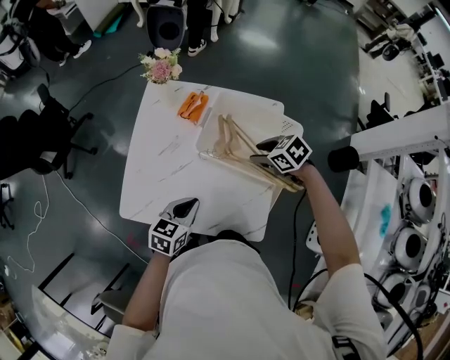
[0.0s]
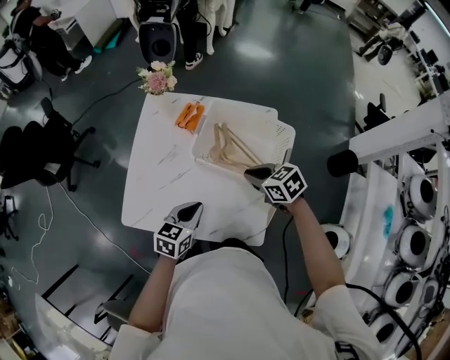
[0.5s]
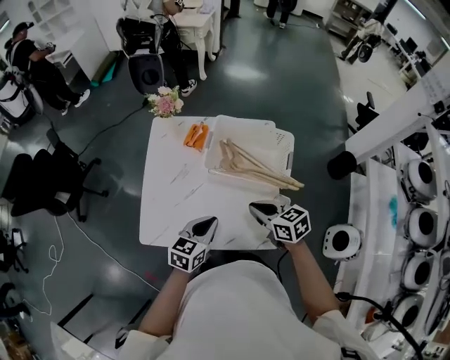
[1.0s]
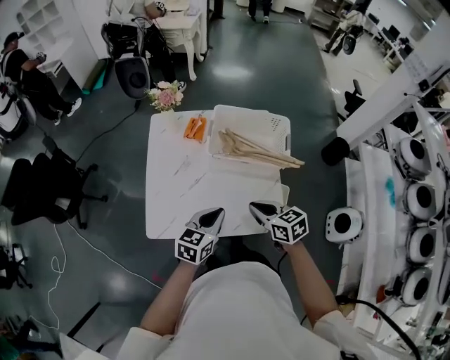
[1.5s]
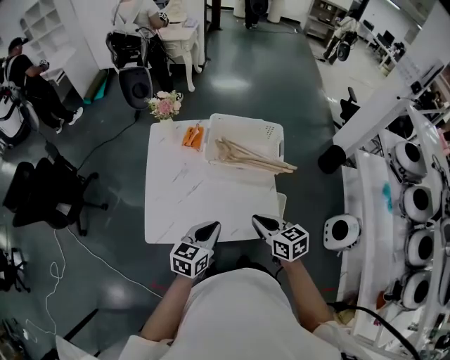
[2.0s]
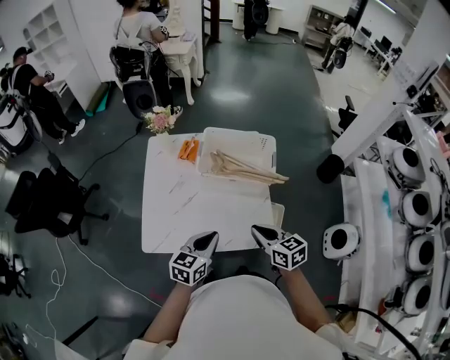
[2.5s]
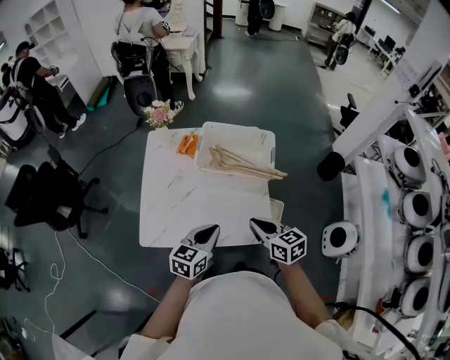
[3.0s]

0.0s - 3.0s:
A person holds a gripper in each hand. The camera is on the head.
0.0s - 1.5s: The left gripper heads backward and upward, covering about 10 cm; the right gripper heads backward and to the left, covering roughly 25 cm, swivels roughly 40 degrees, and closes its fingers.
1.5s - 3.0s: The left gripper changes place by about 5 cm, while the right gripper goes roughly 5 cm to the right.

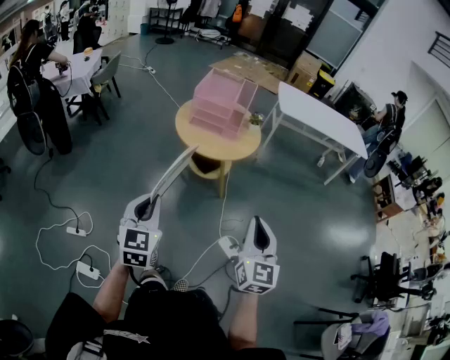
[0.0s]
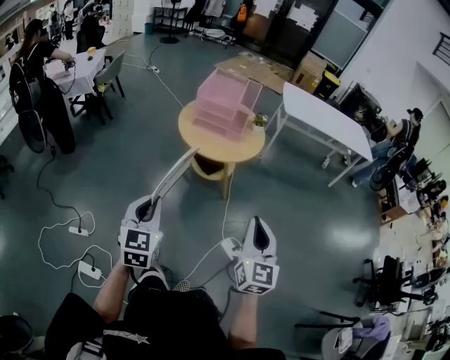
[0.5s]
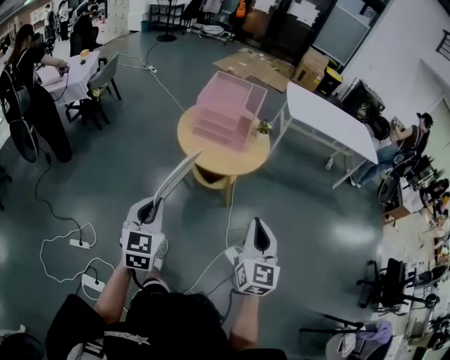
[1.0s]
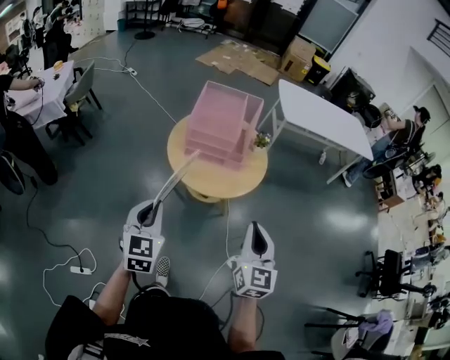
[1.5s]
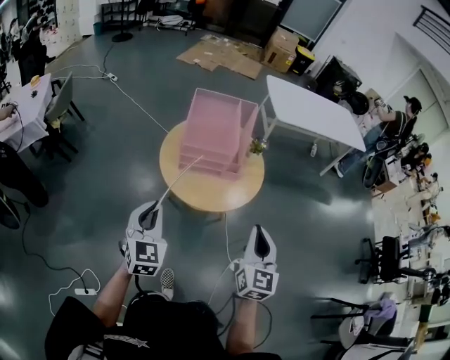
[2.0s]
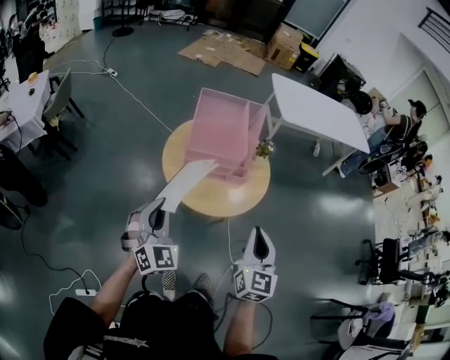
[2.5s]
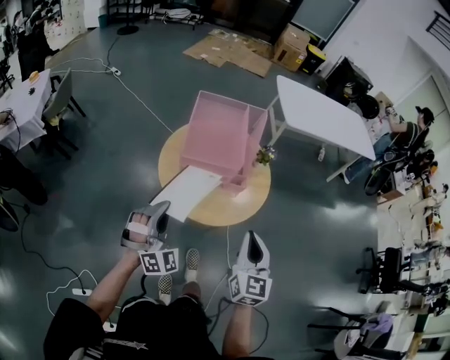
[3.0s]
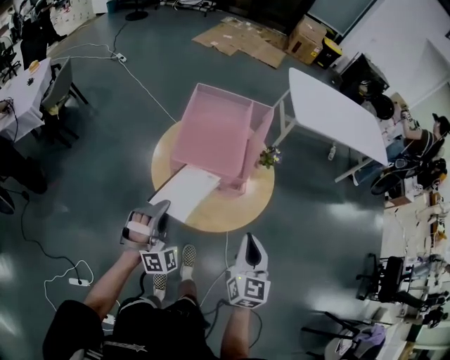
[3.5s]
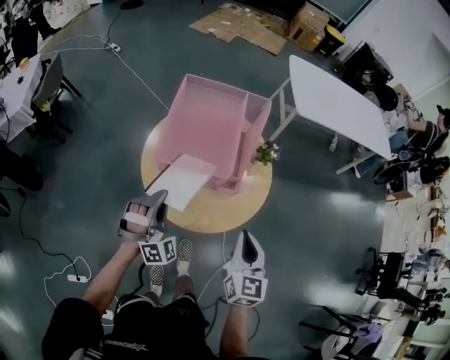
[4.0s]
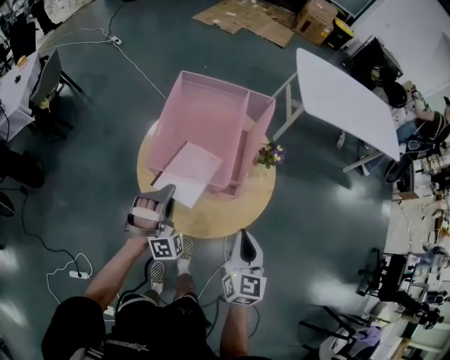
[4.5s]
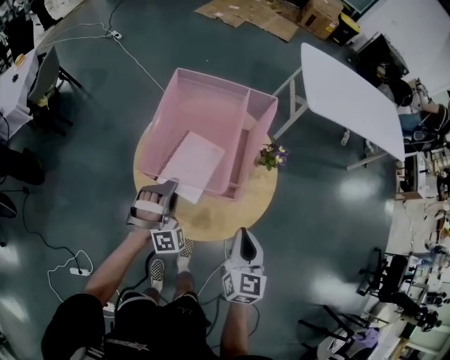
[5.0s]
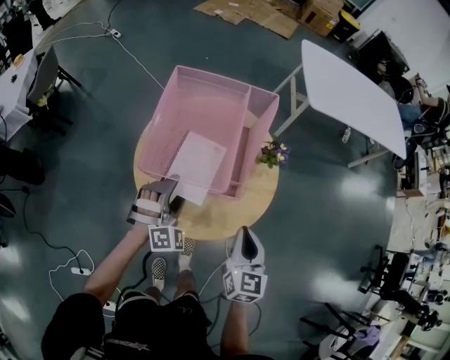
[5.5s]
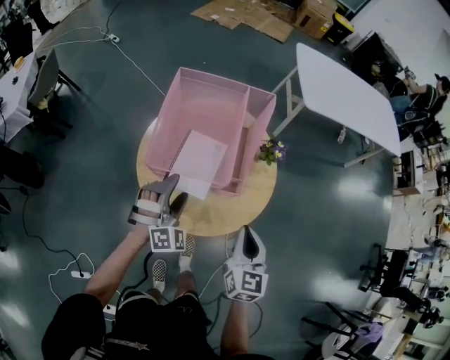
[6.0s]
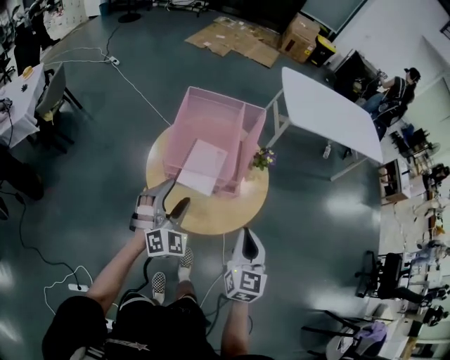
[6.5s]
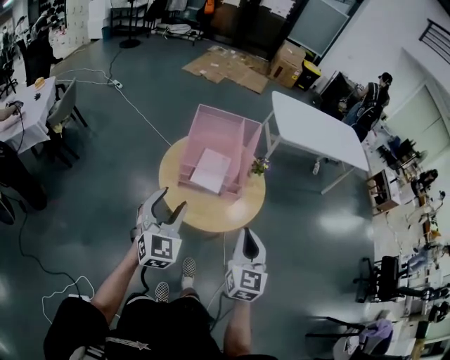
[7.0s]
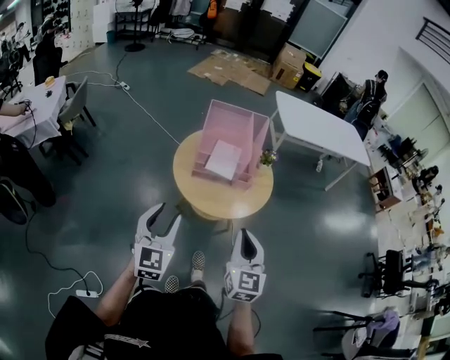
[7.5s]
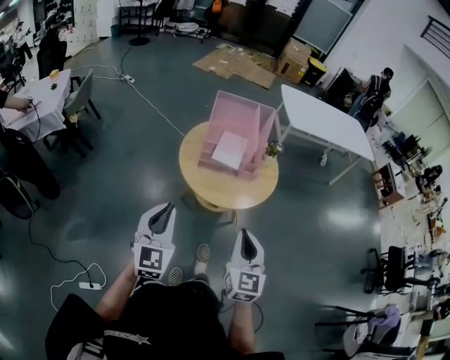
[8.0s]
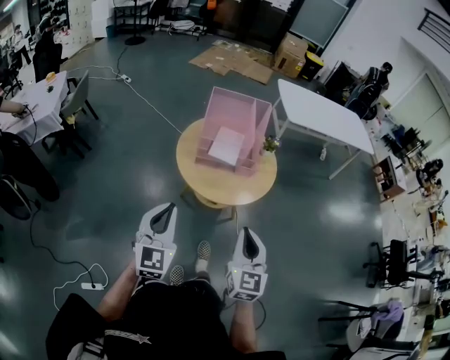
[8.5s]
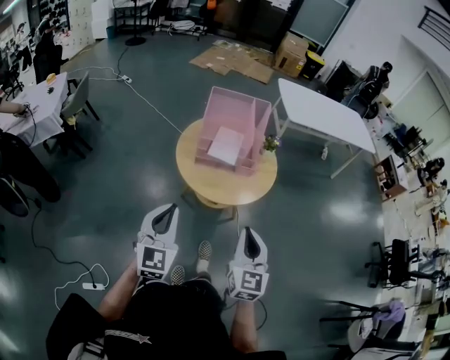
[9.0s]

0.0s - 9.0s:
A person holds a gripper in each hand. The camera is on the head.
0.0s - 2.0s: The two grippers go roughly 35 cm forward.
2.0s - 4.5s: The left gripper goes some 30 cm forward, downward and to the right, and rolls clockwise, seen from behind, by approximately 60 degrees, while the right gripper travels forward and downward by approximately 25 cm.
4.5s - 7.0s: The left gripper travels upward and backward by about 20 cm, rolls counterclockwise, seen from behind, by approximately 50 degrees, and opens its fingers. Meanwhile the right gripper goes approximately 20 cm upward, backward and to the left.
7.0s - 9.0s: The two grippers go about 15 cm backward. The left gripper closes.

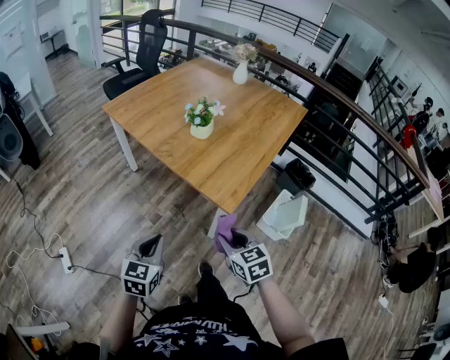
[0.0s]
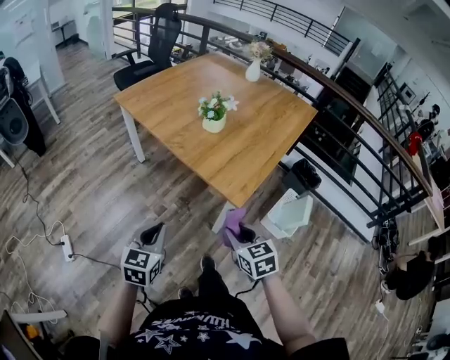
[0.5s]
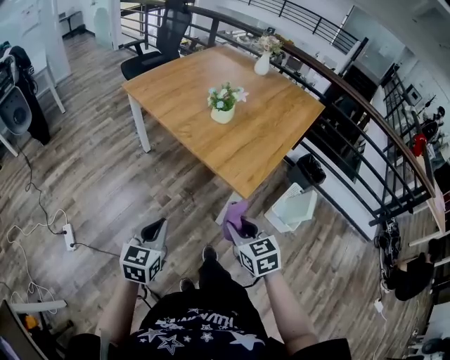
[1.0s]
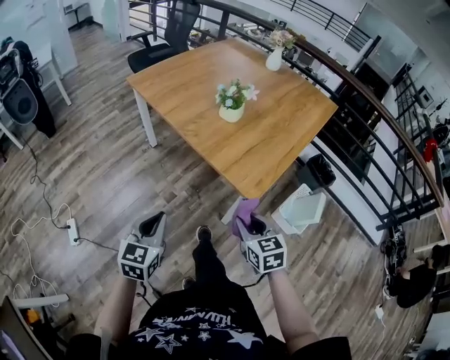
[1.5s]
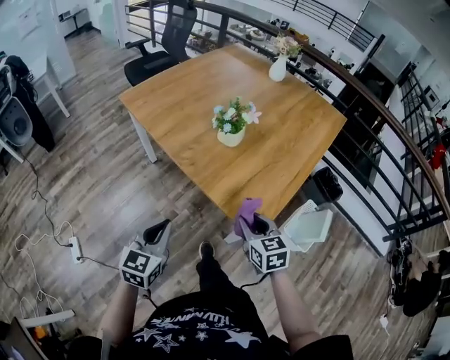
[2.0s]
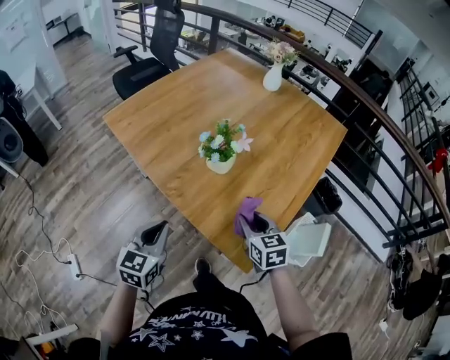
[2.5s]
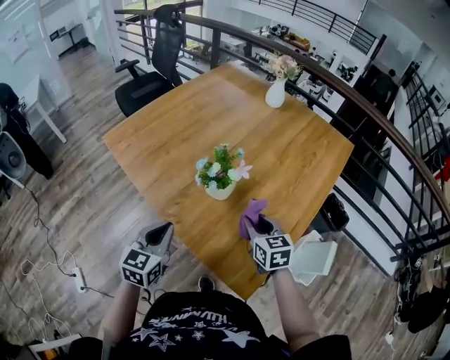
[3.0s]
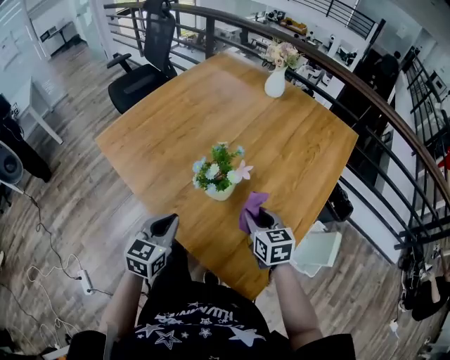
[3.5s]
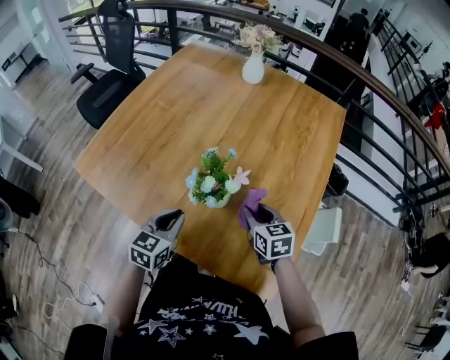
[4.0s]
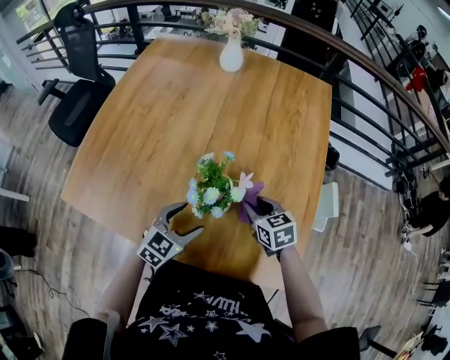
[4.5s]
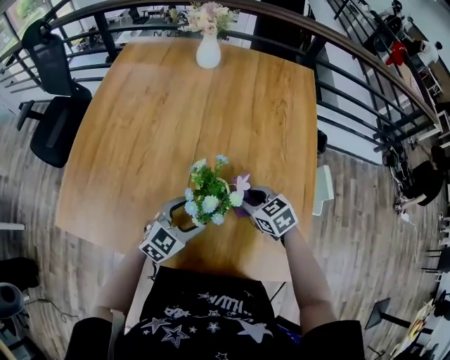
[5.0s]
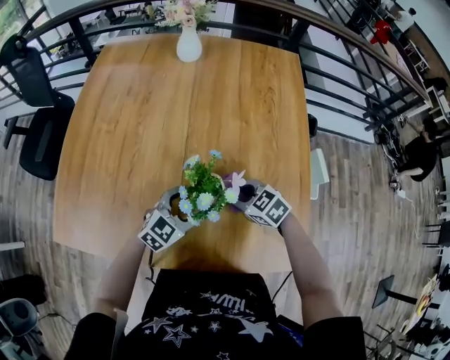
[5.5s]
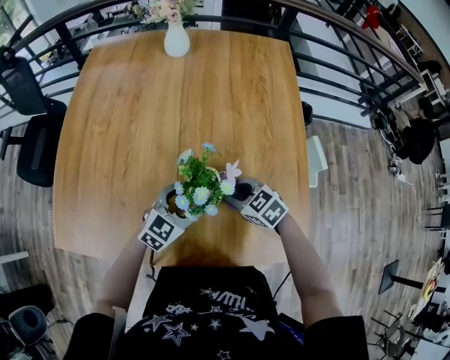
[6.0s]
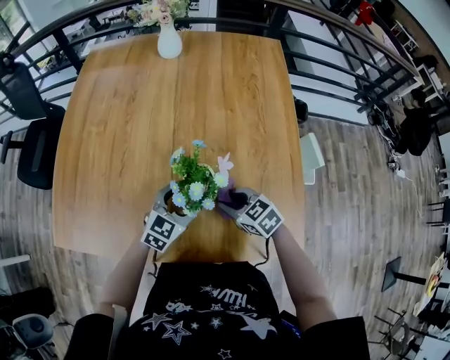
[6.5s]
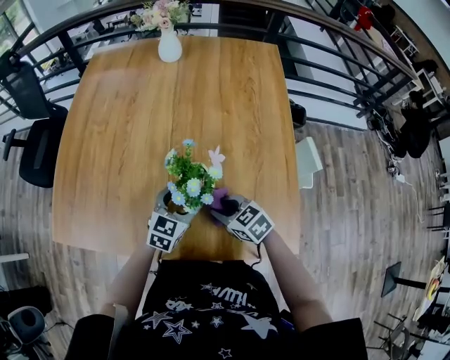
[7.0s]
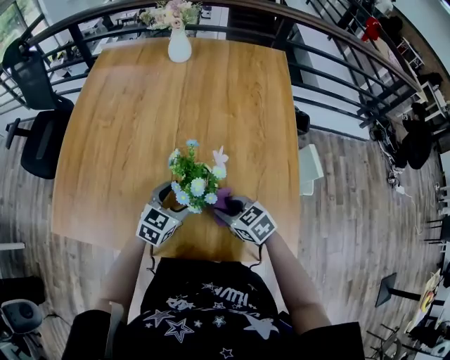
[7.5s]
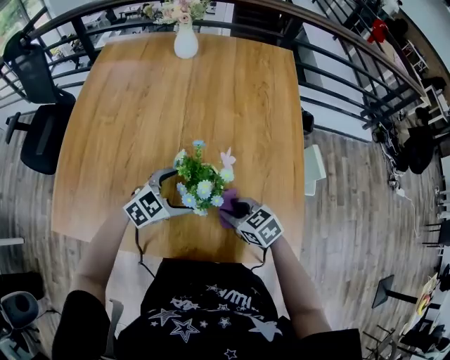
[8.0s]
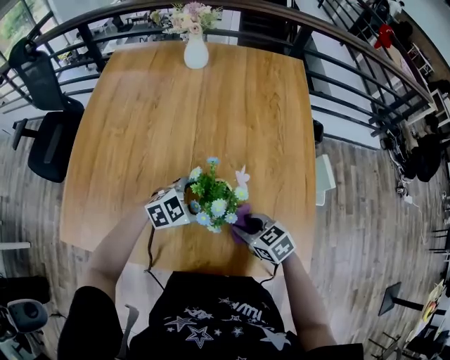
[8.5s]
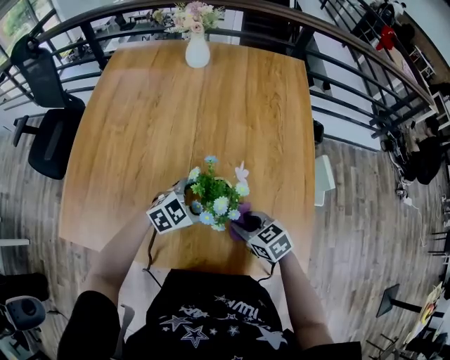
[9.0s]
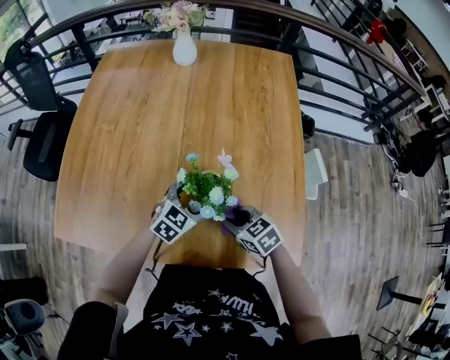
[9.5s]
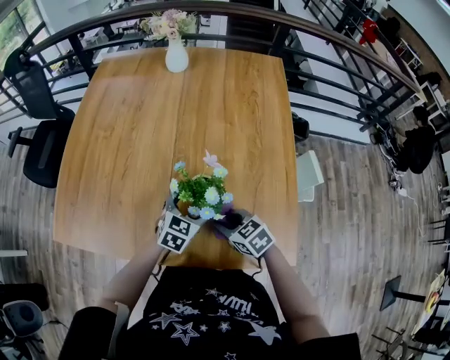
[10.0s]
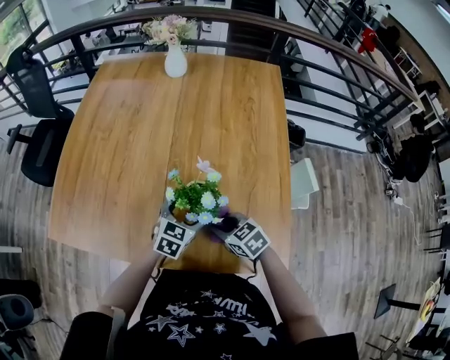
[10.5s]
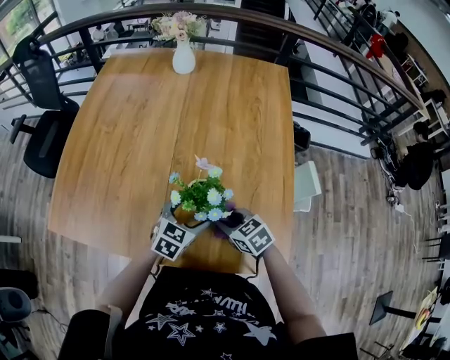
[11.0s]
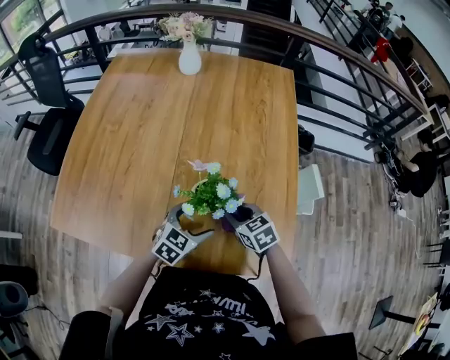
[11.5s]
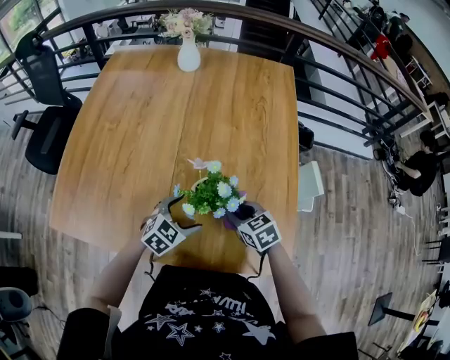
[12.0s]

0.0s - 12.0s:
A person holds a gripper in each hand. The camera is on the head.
0.0s - 2.0s: The two grippers go some 15 cm forward.
2.0s - 4.0s: Both grippers move forward, about 35 cm. The left gripper changes its angle by roughly 20 degrees.
4.0s - 6.0s: The left gripper is displaced forward and downward by about 15 cm, changes its angle by approximately 50 degrees, and opens up. Meanwhile the right gripper shifts approximately 10 cm downward and to the left.
6.0s - 8.0s: The right gripper heads backward, covering about 5 cm.
8.0s - 10.0s: The left gripper moves some 5 cm, and rotates some 30 degrees.
10.0s - 12.0s: The right gripper is displaced to the right by approximately 5 cm.

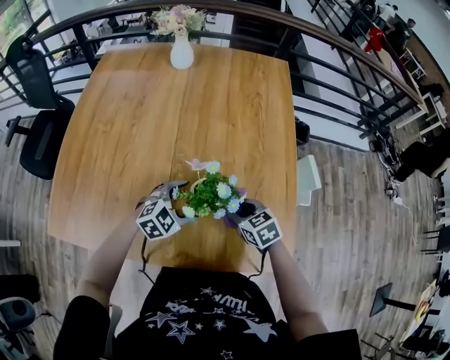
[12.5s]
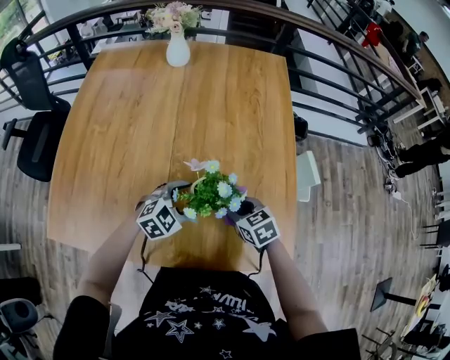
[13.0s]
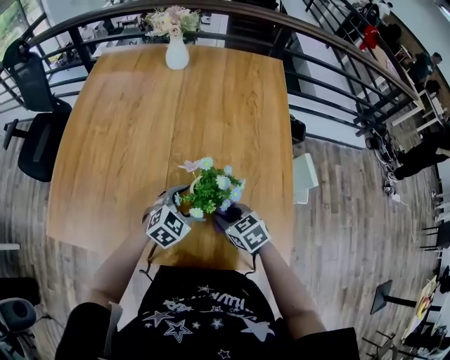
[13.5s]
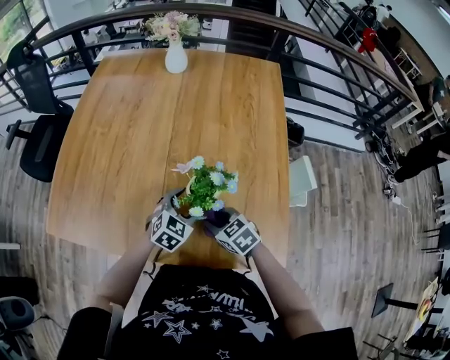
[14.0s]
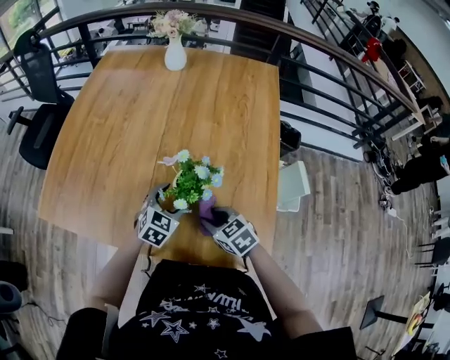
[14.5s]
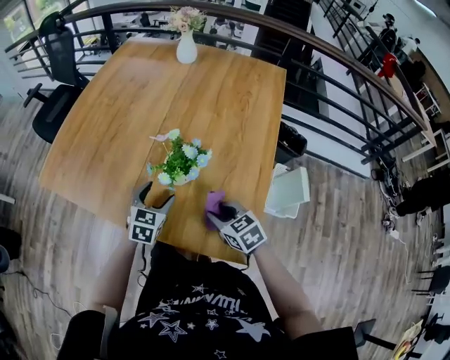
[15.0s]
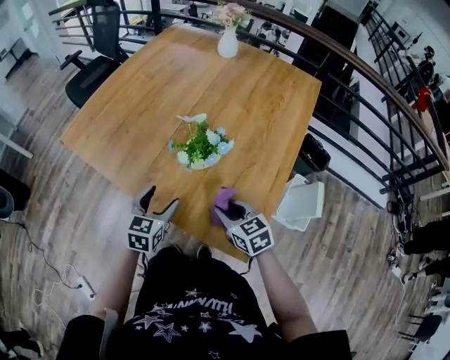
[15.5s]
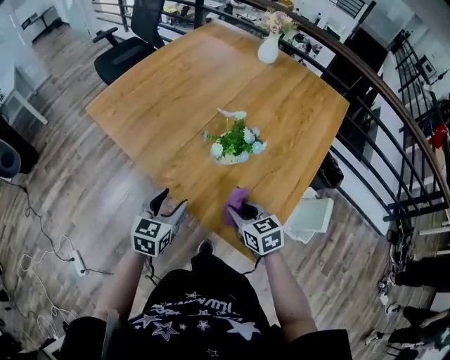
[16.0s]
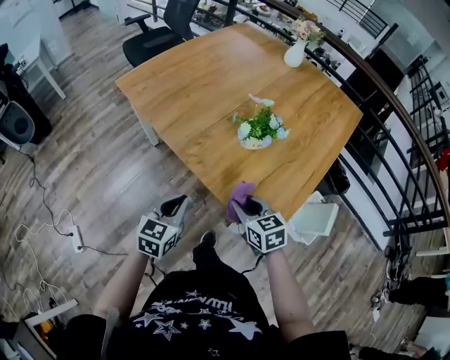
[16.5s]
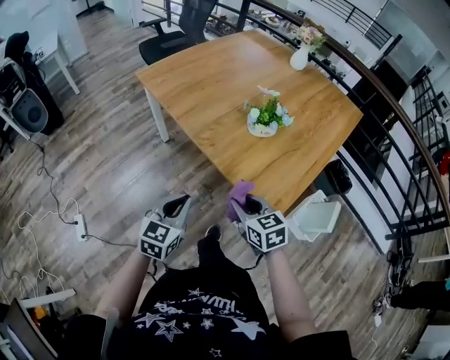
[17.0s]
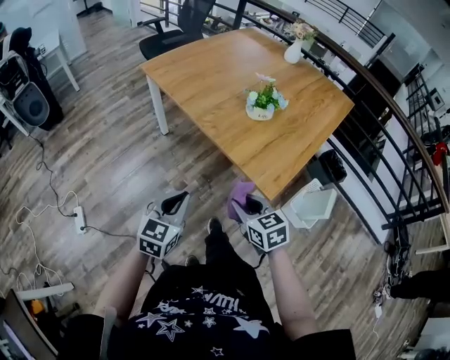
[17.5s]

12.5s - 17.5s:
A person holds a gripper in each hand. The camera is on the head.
12.5s - 15.0s: The left gripper shifts by roughly 5 cm, and swivels about 60 degrees. The right gripper ends up roughly 10 cm from where it was.
15.0s - 17.5s: The grippers both shift backward and to the left by approximately 35 cm. The right gripper rotates approximately 20 degrees. The left gripper rotates approximately 30 degrees, and closes up.
